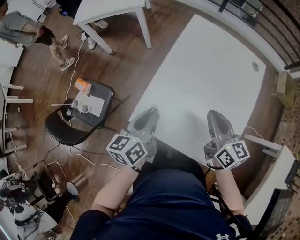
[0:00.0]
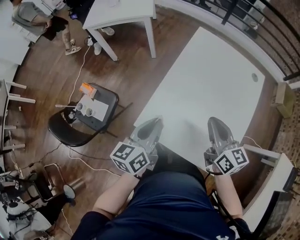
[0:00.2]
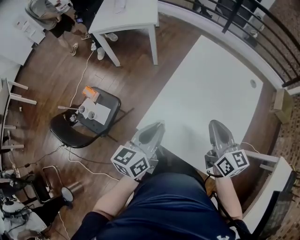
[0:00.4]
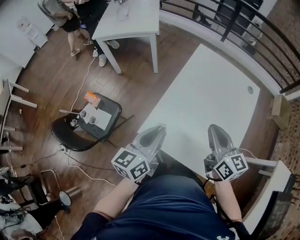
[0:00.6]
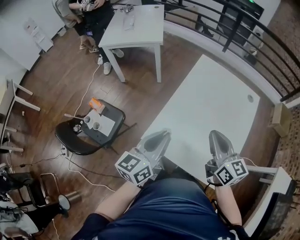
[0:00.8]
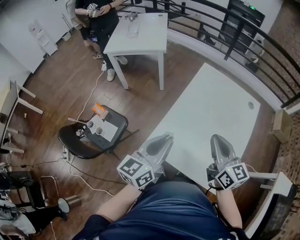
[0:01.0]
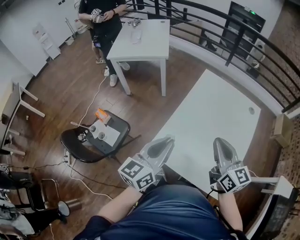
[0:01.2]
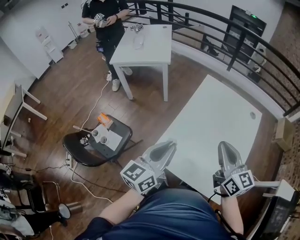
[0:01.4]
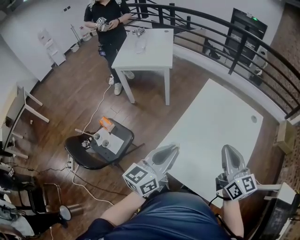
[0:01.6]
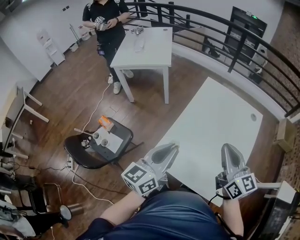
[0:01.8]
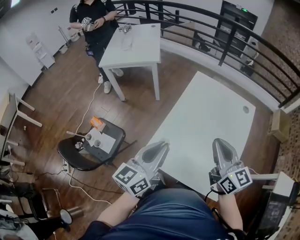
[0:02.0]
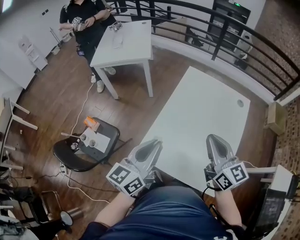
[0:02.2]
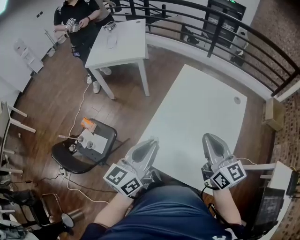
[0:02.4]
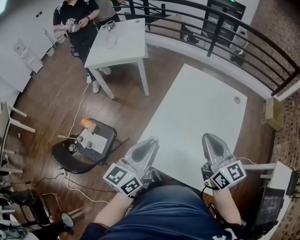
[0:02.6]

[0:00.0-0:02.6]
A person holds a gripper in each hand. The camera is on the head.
0:00.0 to 0:01.2: Both grippers move upward, some 15 cm. The left gripper swivels about 20 degrees.
0:01.2 to 0:02.6: The grippers stay close to where they were, moving slightly.

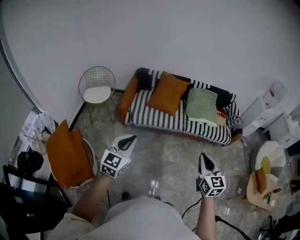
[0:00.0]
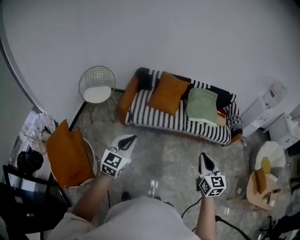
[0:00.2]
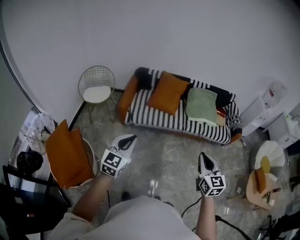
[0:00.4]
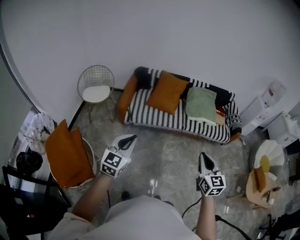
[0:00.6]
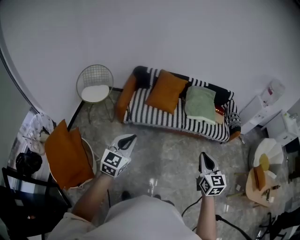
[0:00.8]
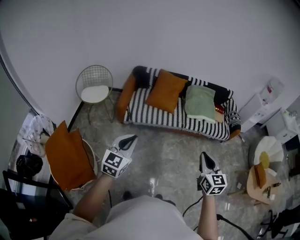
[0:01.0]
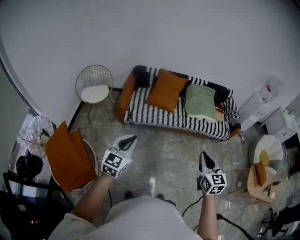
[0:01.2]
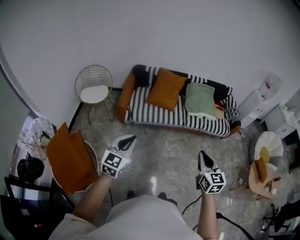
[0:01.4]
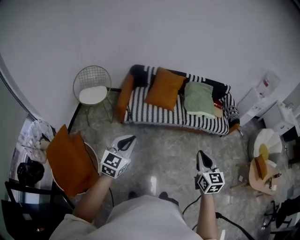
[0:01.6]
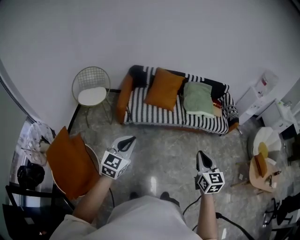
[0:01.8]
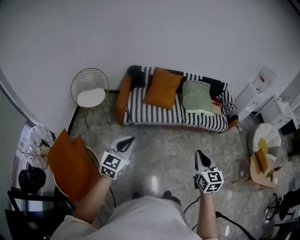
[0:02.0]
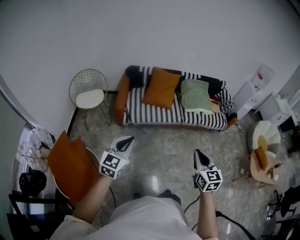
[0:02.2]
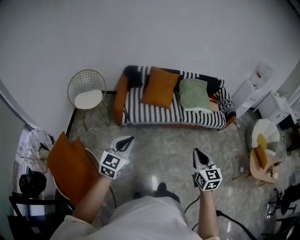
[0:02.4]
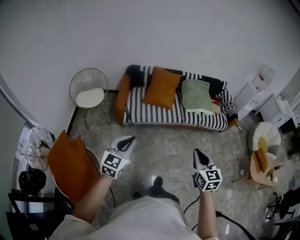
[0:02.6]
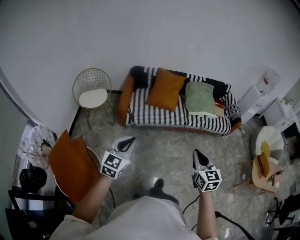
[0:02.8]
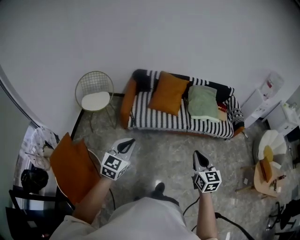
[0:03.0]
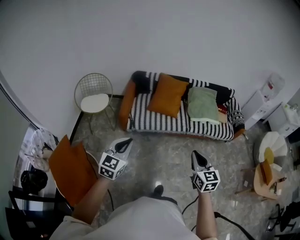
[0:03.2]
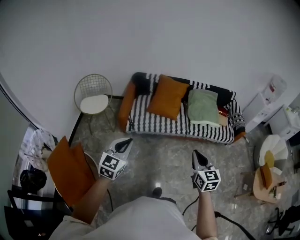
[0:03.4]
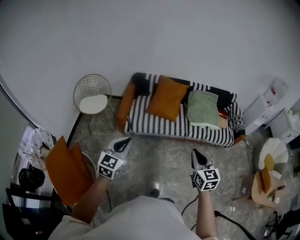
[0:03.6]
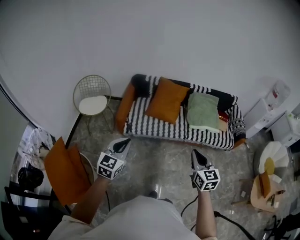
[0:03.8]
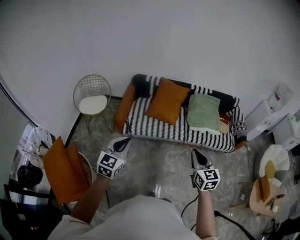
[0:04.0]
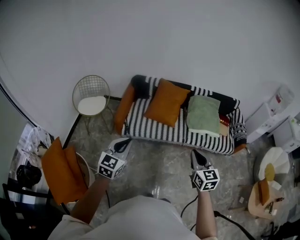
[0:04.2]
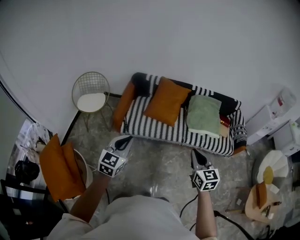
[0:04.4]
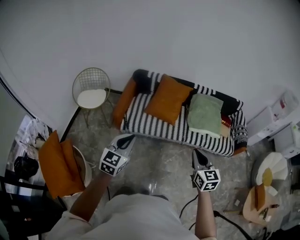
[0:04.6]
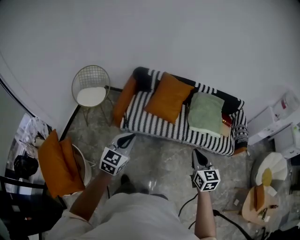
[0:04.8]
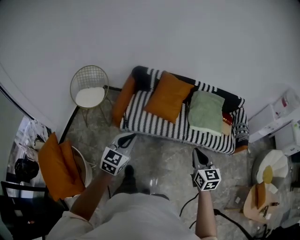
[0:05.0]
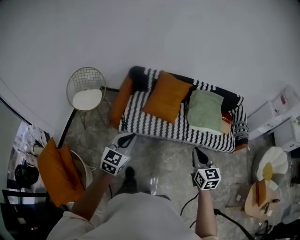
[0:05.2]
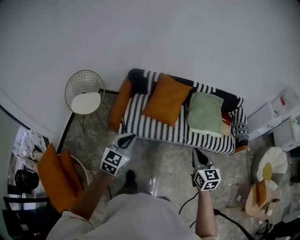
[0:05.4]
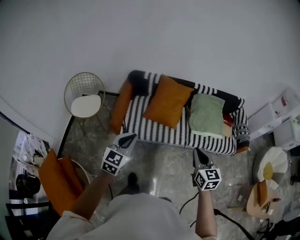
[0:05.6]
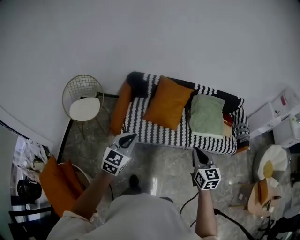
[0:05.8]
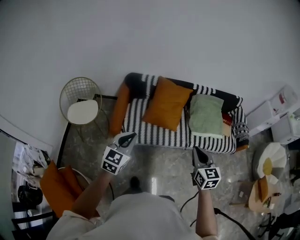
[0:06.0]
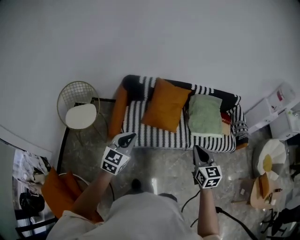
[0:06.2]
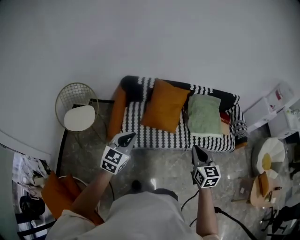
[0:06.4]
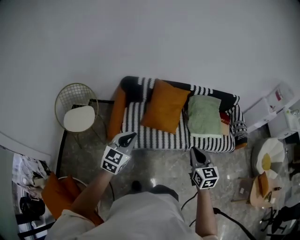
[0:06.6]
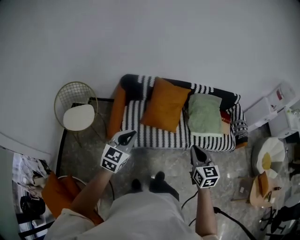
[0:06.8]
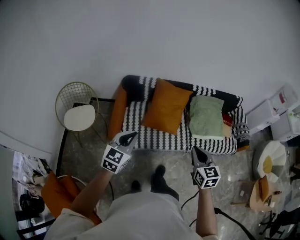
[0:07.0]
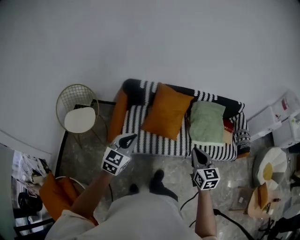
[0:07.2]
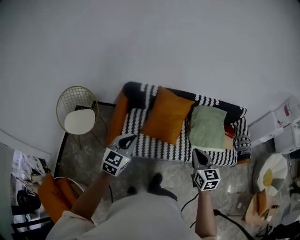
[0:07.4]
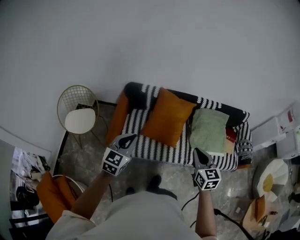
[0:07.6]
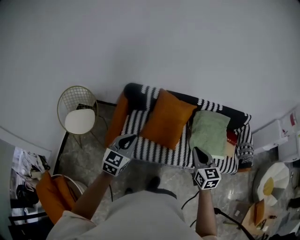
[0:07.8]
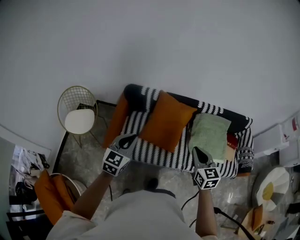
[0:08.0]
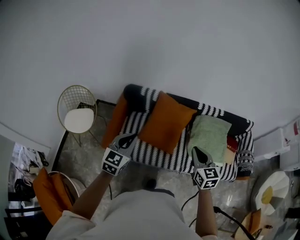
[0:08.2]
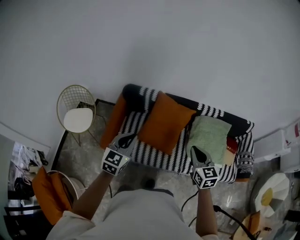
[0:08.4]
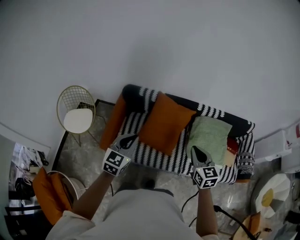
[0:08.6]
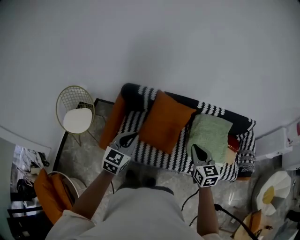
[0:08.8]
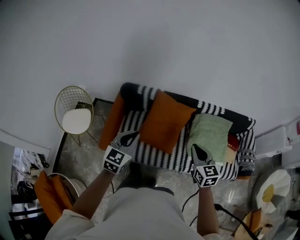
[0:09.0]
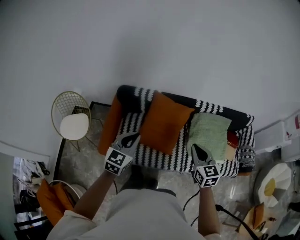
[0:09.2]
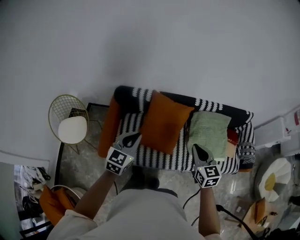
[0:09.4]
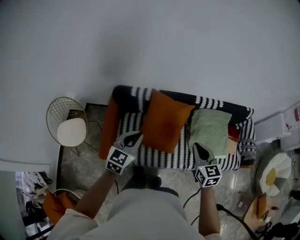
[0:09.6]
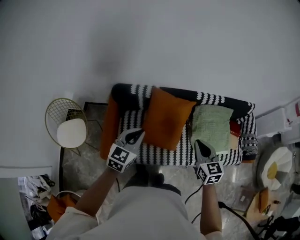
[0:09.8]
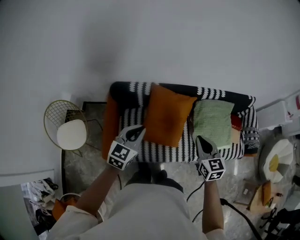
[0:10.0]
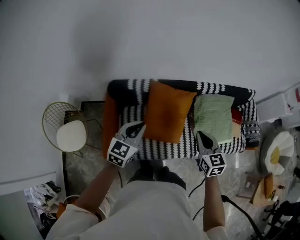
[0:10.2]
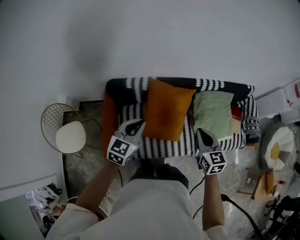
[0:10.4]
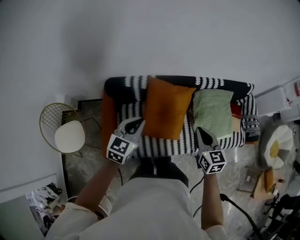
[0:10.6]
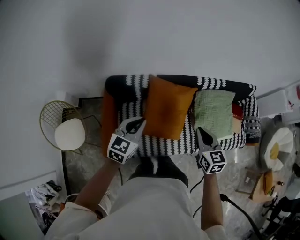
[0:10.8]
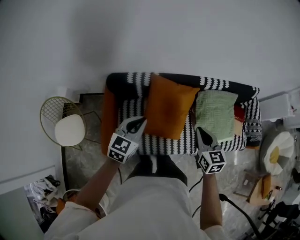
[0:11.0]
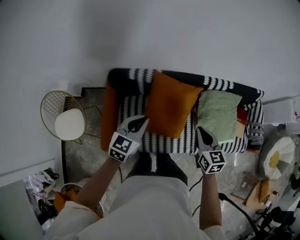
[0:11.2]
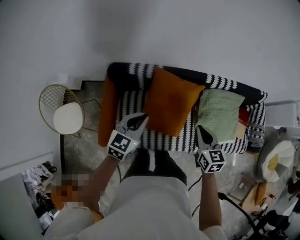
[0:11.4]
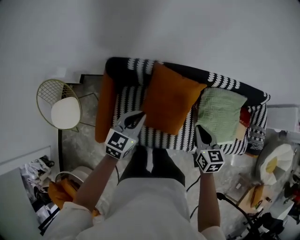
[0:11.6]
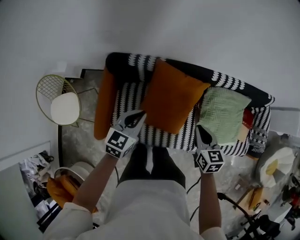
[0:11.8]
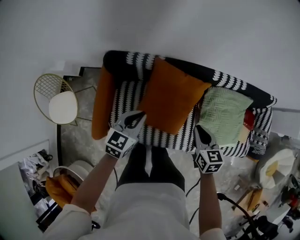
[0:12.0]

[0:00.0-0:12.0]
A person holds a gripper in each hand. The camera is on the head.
0:00.0 to 0:01.6: The two grippers go approximately 10 cm to the left.
0:01.6 to 0:03.0: The right gripper shifts about 5 cm forward. Meanwhile the left gripper changes place by roughly 5 cm.
0:03.0 to 0:04.4: The two grippers go approximately 25 cm forward and to the right.
0:04.4 to 0:06.0: Both grippers move forward and to the left, roughly 25 cm.
0:06.0 to 0:07.6: The two grippers go approximately 20 cm forward.
0:07.6 to 0:09.0: The two grippers go some 20 cm forward and to the right.
0:09.0 to 0:10.4: The grippers both shift forward and to the left by approximately 20 cm.
0:10.4 to 0:12.0: Both grippers move downward and forward, about 20 cm.

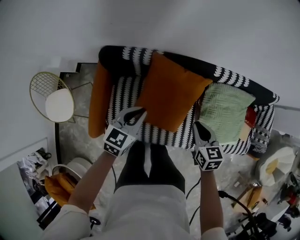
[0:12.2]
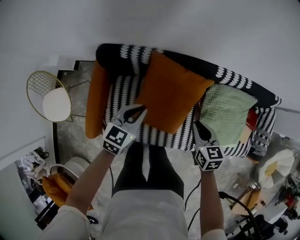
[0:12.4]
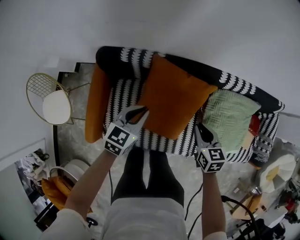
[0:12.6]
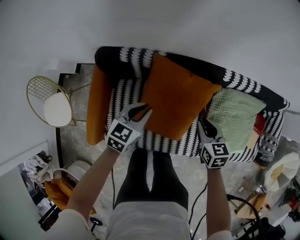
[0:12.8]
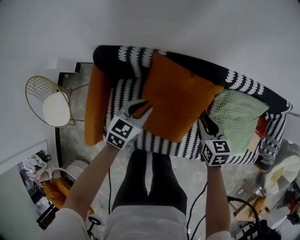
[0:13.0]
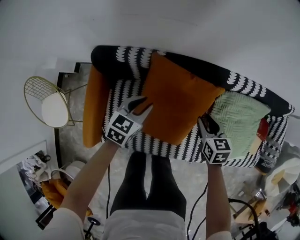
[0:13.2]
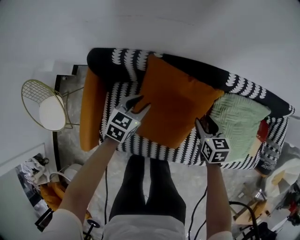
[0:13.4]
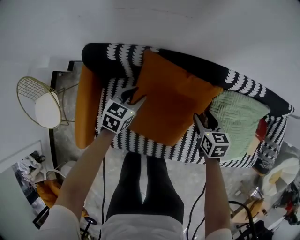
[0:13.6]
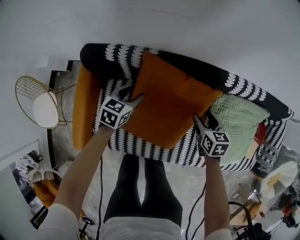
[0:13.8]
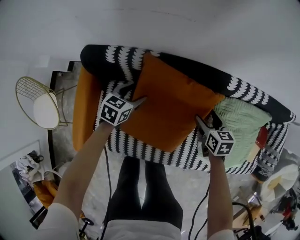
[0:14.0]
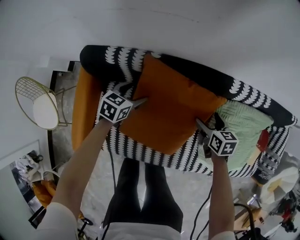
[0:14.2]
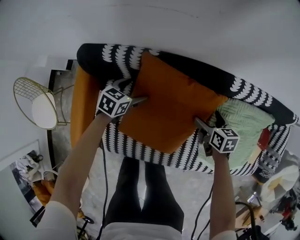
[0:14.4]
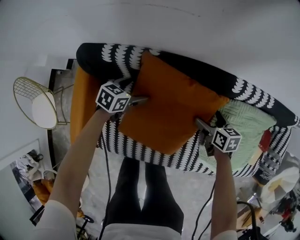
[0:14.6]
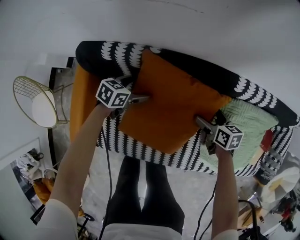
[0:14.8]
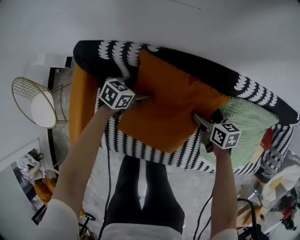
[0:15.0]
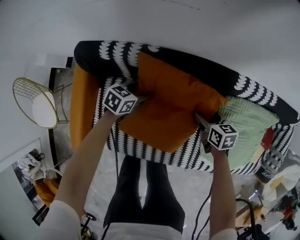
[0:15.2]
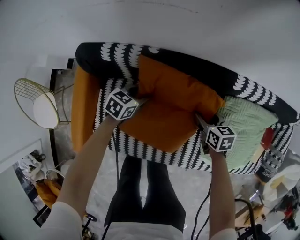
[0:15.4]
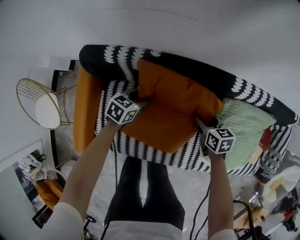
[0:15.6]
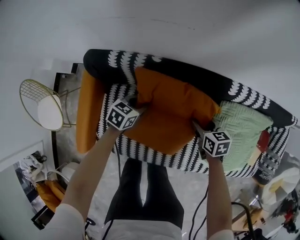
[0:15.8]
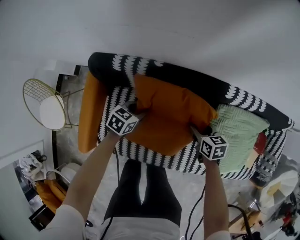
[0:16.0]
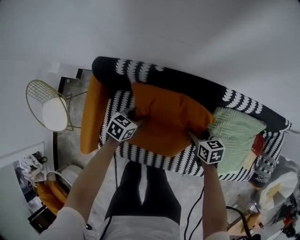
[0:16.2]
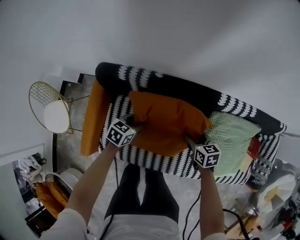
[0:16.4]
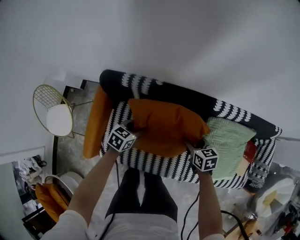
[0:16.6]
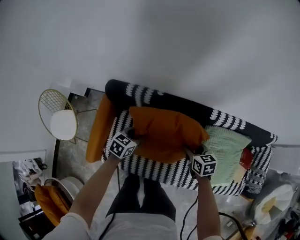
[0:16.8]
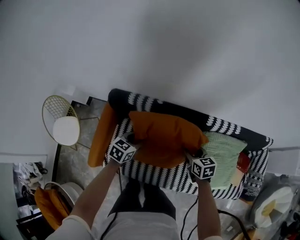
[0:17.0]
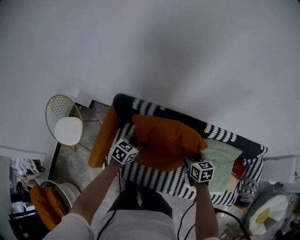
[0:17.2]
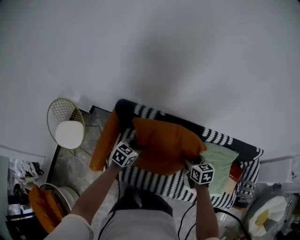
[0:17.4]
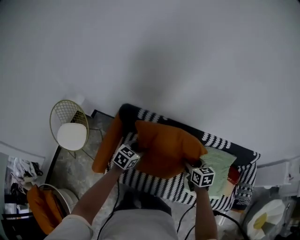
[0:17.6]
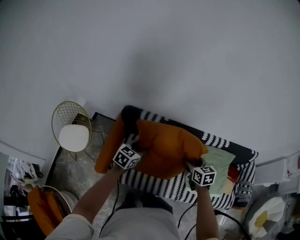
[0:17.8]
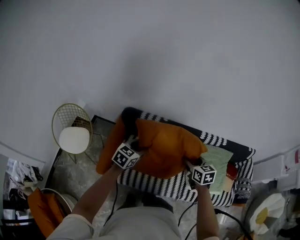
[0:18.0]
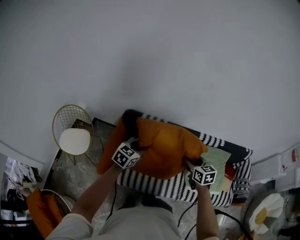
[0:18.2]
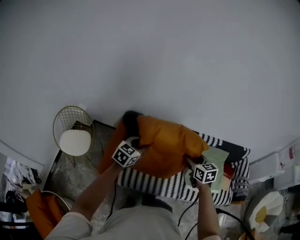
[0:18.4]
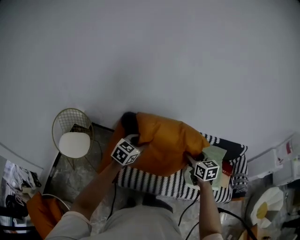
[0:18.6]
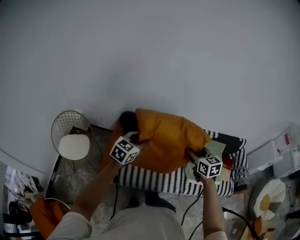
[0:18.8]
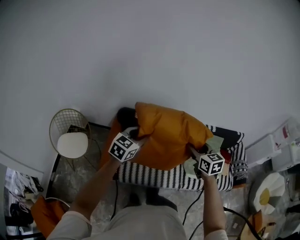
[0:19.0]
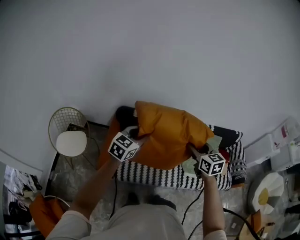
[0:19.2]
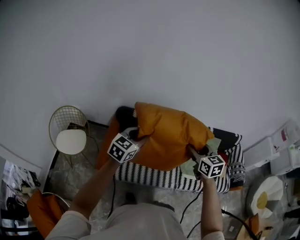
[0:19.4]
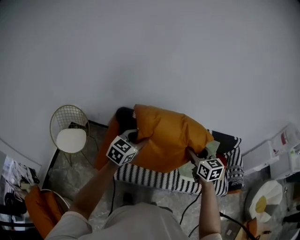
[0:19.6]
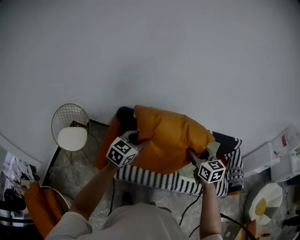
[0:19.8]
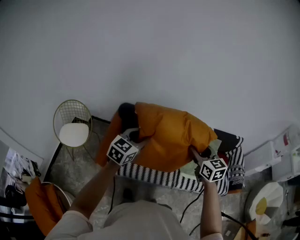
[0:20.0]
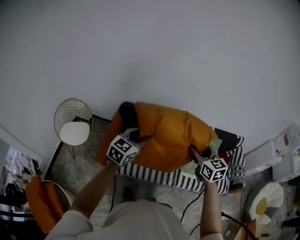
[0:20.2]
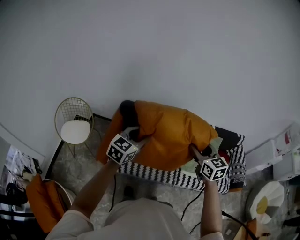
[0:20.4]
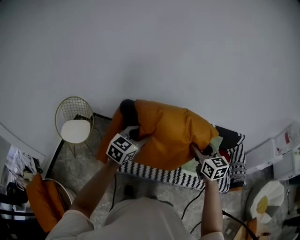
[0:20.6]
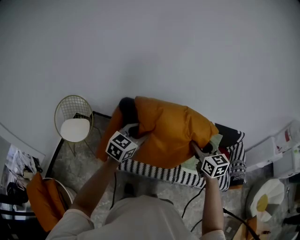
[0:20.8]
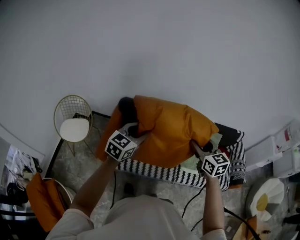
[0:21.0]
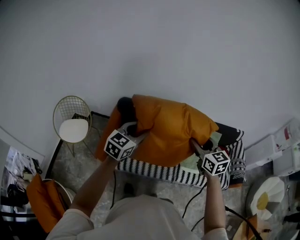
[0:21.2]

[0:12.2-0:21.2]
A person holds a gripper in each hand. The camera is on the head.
0:12.2 to 0:13.8: The two grippers go approximately 30 cm downward and forward. The left gripper opens. Meanwhile the right gripper opens its fingers.
0:13.8 to 0:15.2: Both grippers move downward, roughly 10 cm. The left gripper opens, then closes again. The right gripper opens, then closes once more.
0:15.2 to 0:16.6: The left gripper moves upward and backward, roughly 25 cm, while the right gripper travels upward by about 20 cm.
0:16.6 to 0:18.2: Both grippers travel together upward and backward, approximately 40 cm. The left gripper turns by some 20 degrees.
0:18.2 to 0:19.8: The grippers both shift backward, upward and to the right by some 25 cm.
0:19.8 to 0:21.2: There are only small adjustments of the grippers.
